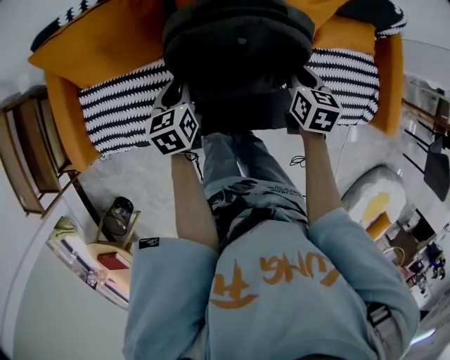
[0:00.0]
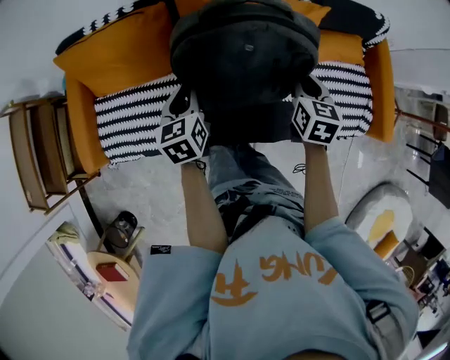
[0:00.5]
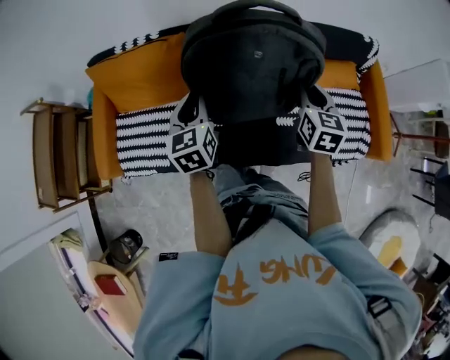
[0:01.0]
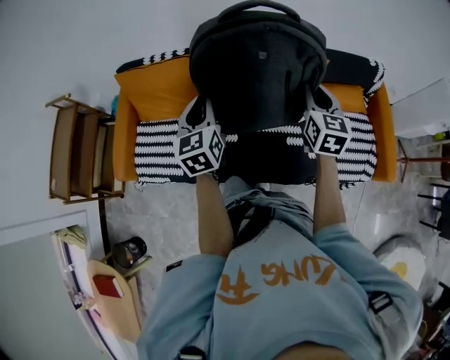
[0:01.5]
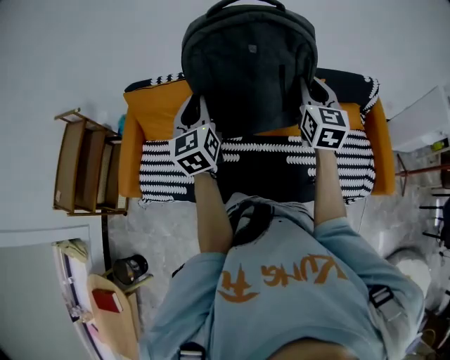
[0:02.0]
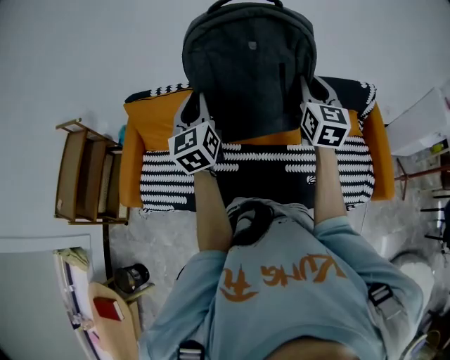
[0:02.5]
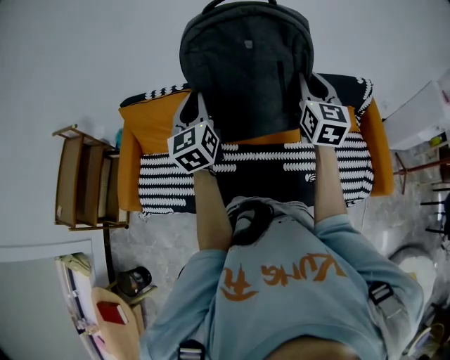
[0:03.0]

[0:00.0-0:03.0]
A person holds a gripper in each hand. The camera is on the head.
0.0 to 1.5 s: Both grippers travel together upward, roughly 30 cm. The left gripper rotates about 30 degrees, while the right gripper changes its angle by approximately 30 degrees.
1.5 to 3.0 s: The left gripper heads upward and forward, covering about 10 cm. The right gripper shifts some 10 cm upward.

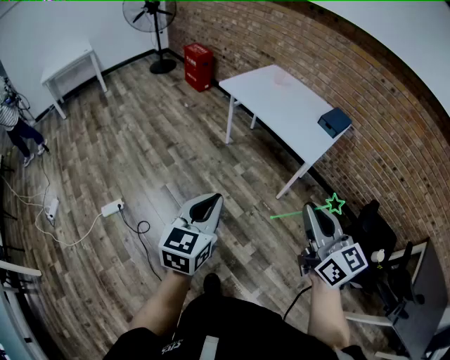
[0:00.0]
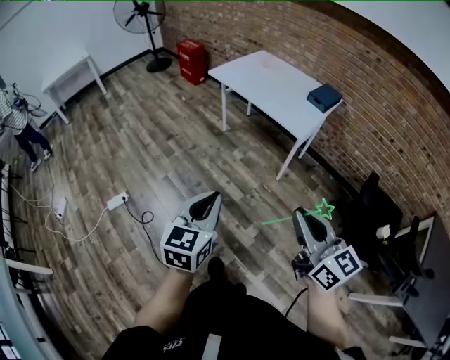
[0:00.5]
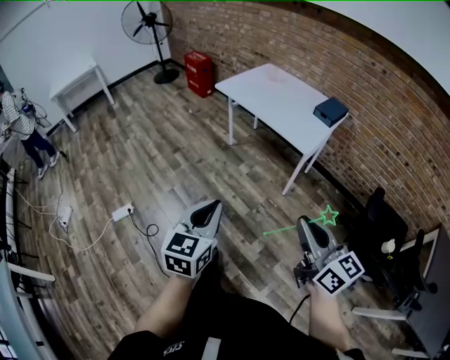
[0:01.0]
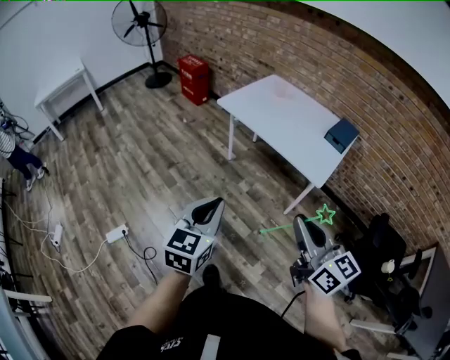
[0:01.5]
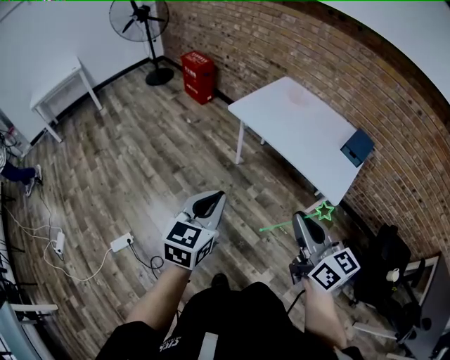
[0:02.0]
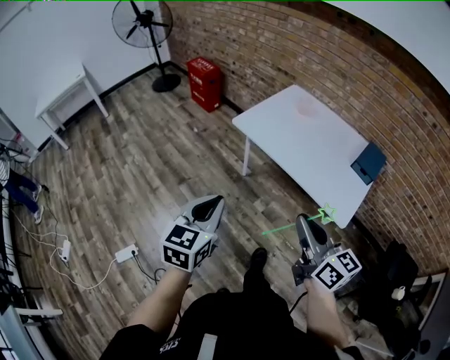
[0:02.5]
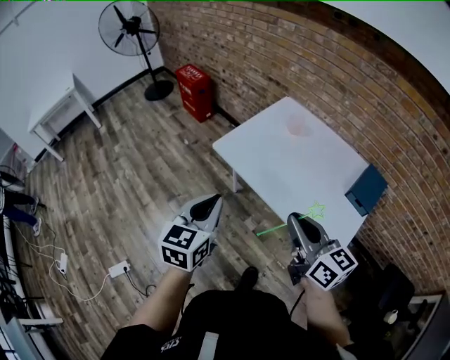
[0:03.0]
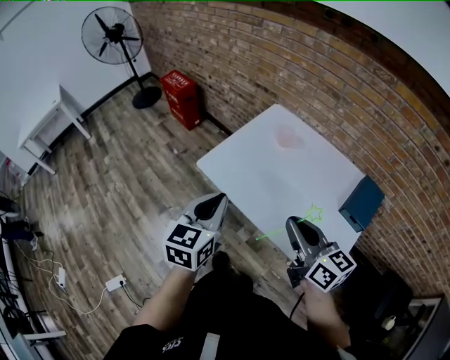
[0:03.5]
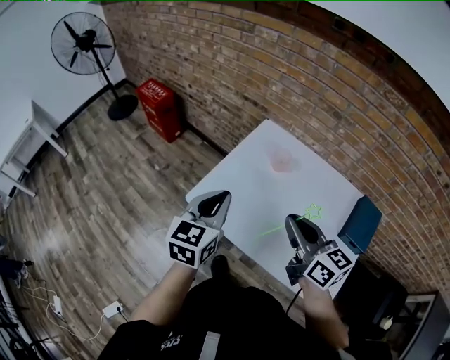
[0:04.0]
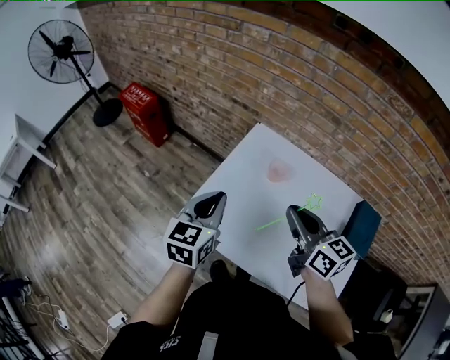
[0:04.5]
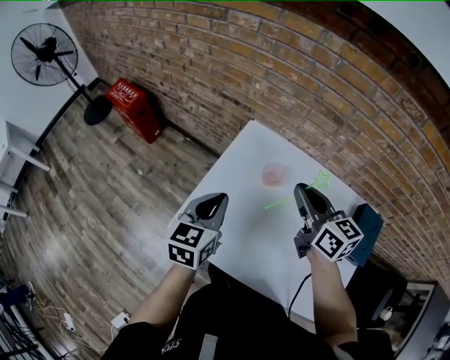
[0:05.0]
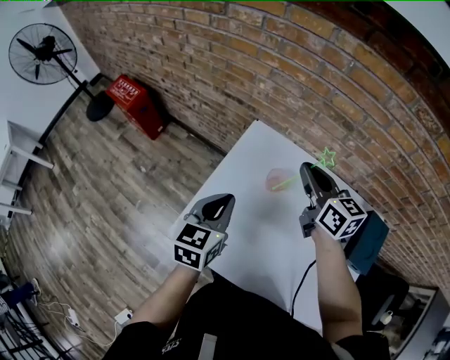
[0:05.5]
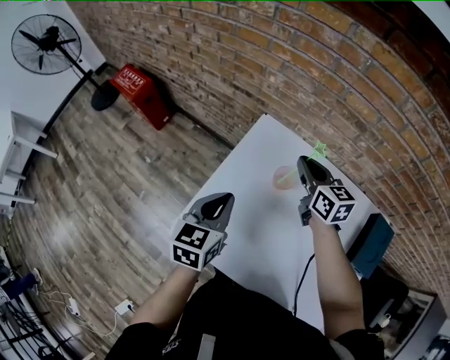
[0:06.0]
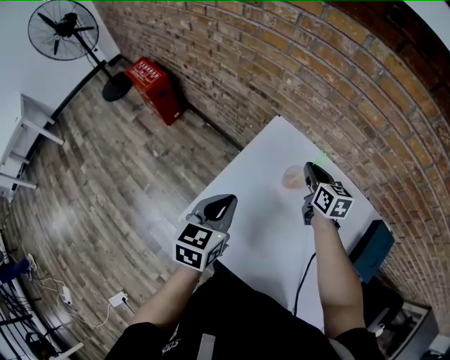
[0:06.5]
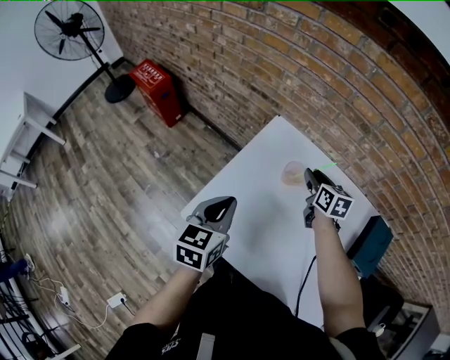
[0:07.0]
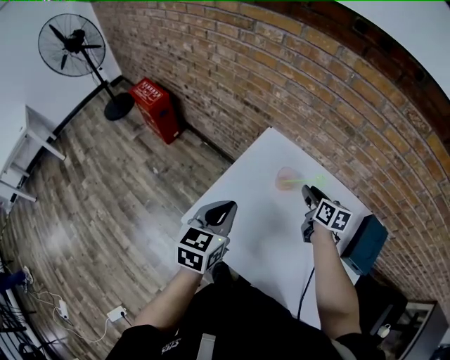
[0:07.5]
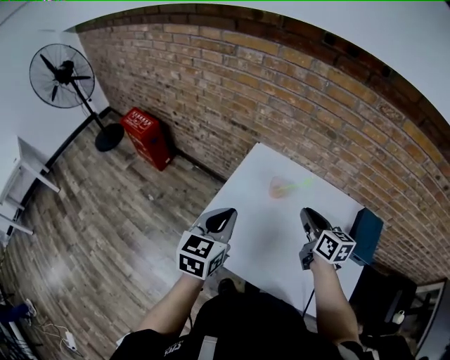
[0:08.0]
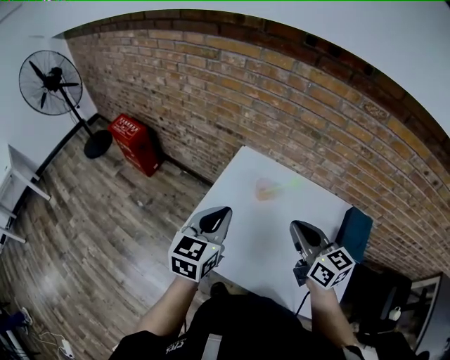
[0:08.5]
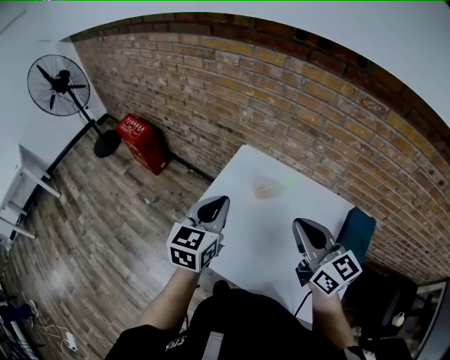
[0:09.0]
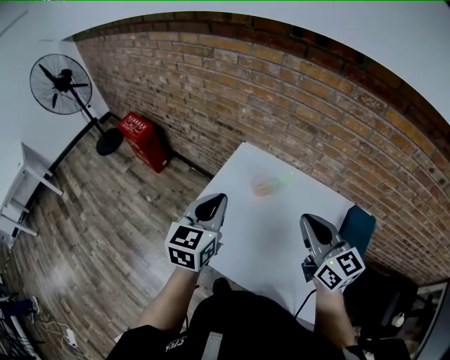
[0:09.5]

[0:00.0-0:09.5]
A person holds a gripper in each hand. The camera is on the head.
0.0 to 2.0 s: The right gripper travels forward and to the left by some 25 cm; the left gripper heads forward, covering about 25 cm.
2.0 to 4.0 s: Both grippers are carried forward, some 60 cm.
4.0 to 5.5 s: The left gripper heads forward and downward, covering some 20 cm. The right gripper travels forward by roughly 30 cm.
5.5 to 7.5 s: The left gripper heads backward, covering about 10 cm; the right gripper is displaced downward by about 10 cm, rotates some 20 degrees, and opens.
7.5 to 9.5 s: The left gripper travels upward and to the right by some 10 cm; the right gripper moves upward and backward, approximately 30 cm, rotates about 30 degrees, and closes up.

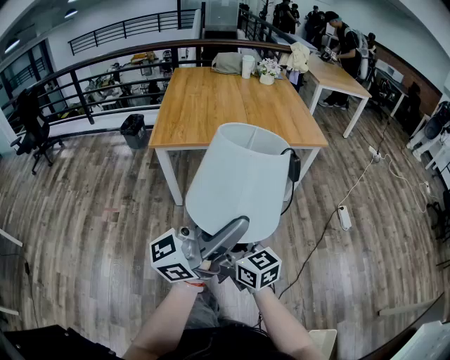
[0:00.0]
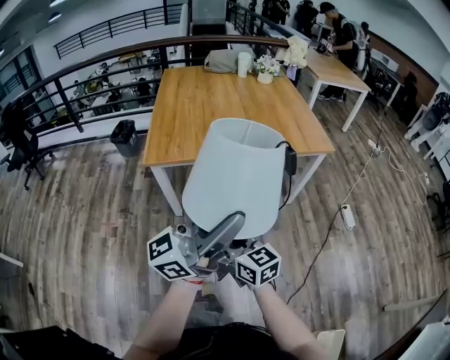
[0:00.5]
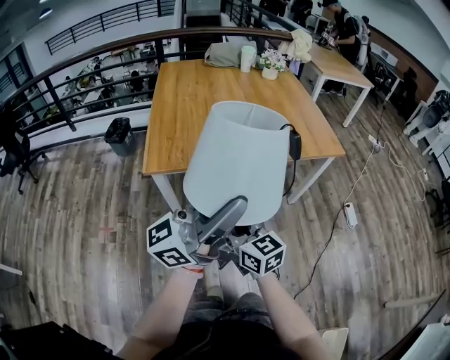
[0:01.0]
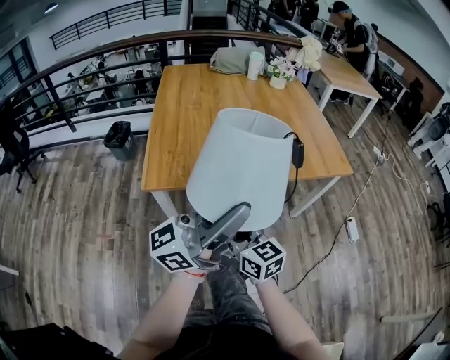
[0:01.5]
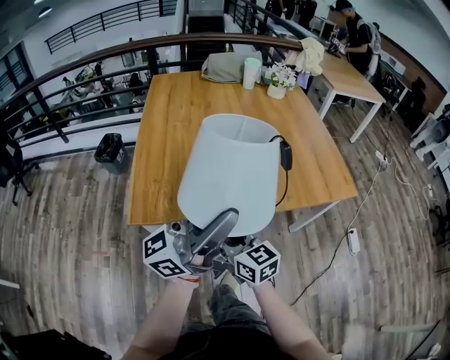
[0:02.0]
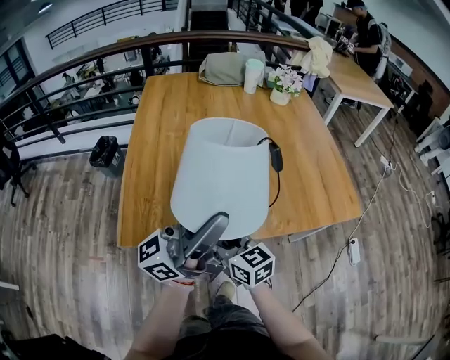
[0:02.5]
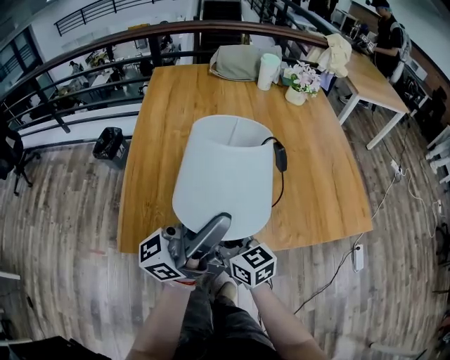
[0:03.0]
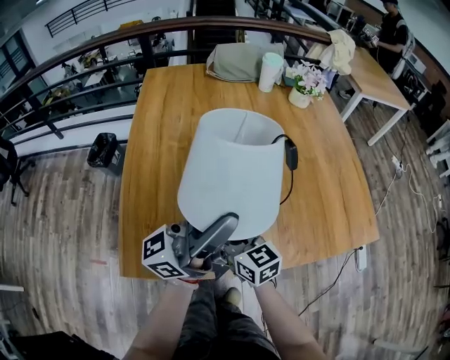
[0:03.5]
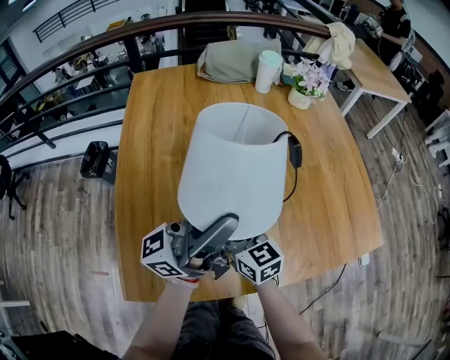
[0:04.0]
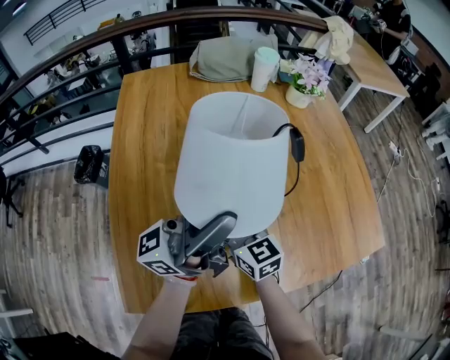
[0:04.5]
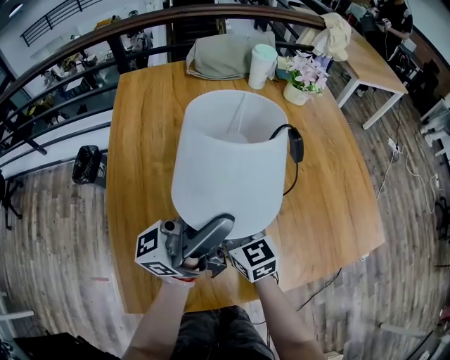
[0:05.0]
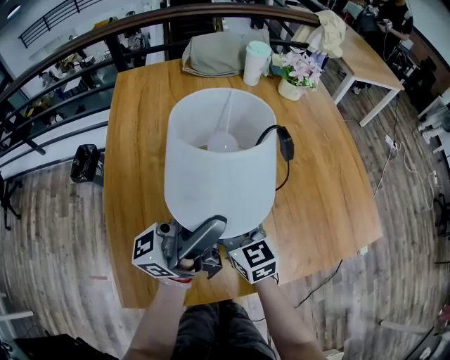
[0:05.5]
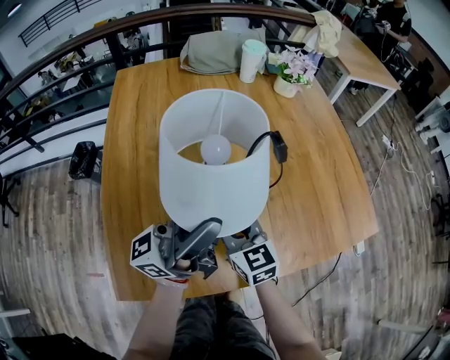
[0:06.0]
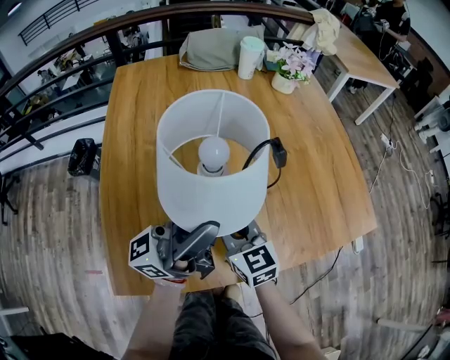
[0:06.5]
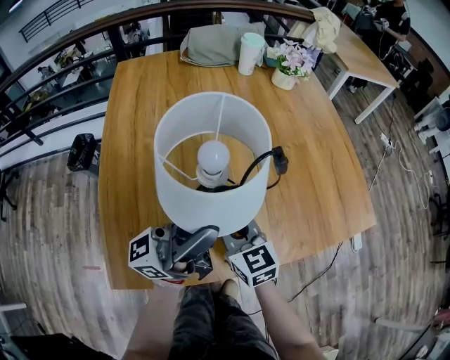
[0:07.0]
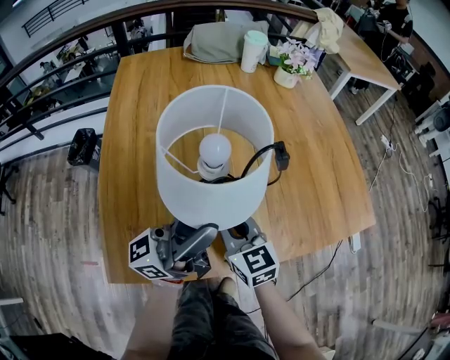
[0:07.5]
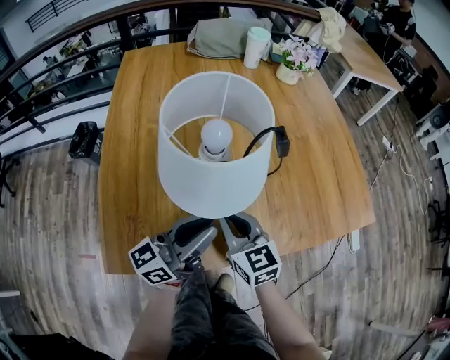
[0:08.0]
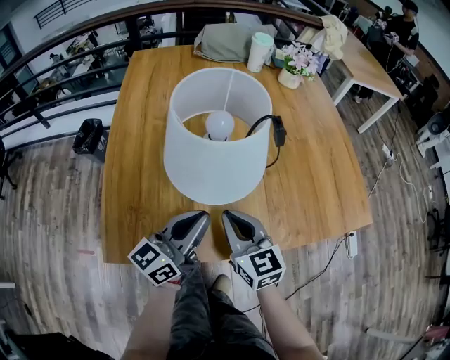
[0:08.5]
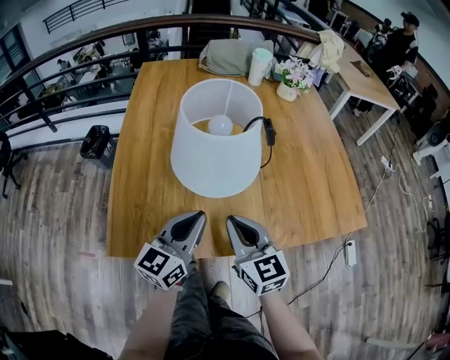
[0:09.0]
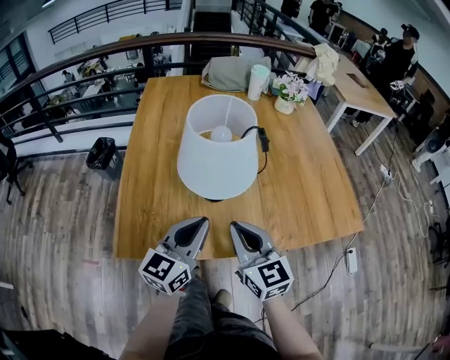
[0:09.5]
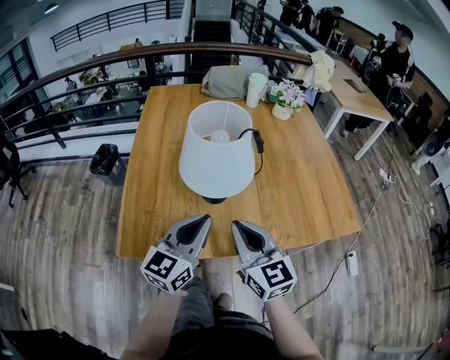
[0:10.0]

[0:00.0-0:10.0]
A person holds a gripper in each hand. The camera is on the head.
0.0 to 2.0 s: The two grippers travel together, forward, roughly 40 cm.
2.0 to 4.0 s: Both grippers move forward, about 30 cm.
4.0 to 6.0 s: The right gripper closes its fingers.
6.0 to 8.0 s: The left gripper goes approximately 15 cm downward and backward, and rotates approximately 30 degrees; the right gripper heads backward, covering about 5 cm.
8.0 to 10.0 s: The right gripper shifts some 15 cm upward and backward; the left gripper travels backward and upward by about 10 cm, and changes its angle by approximately 40 degrees.

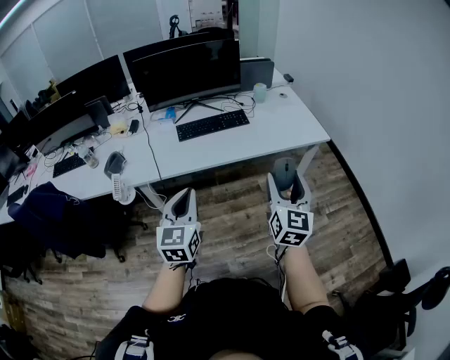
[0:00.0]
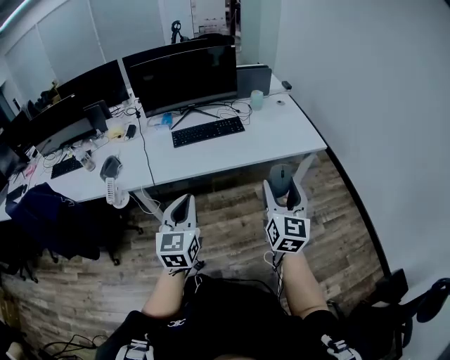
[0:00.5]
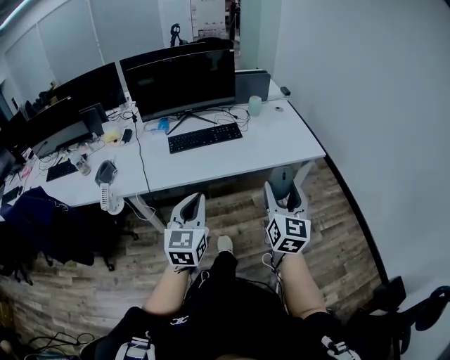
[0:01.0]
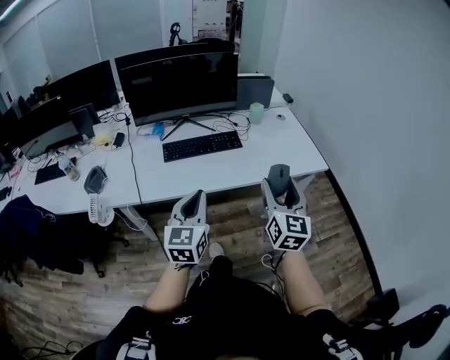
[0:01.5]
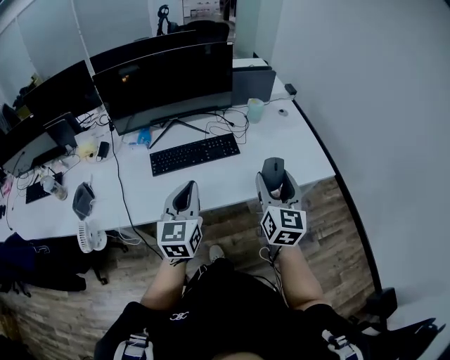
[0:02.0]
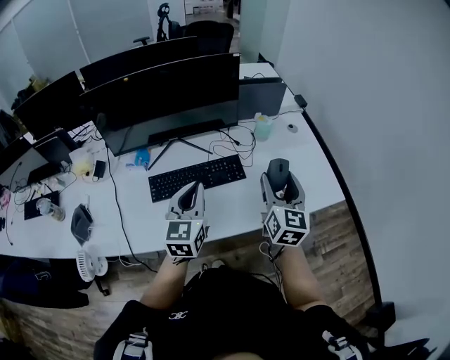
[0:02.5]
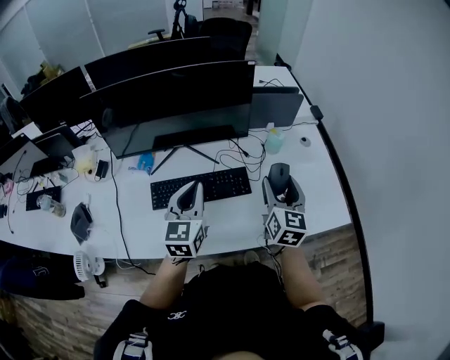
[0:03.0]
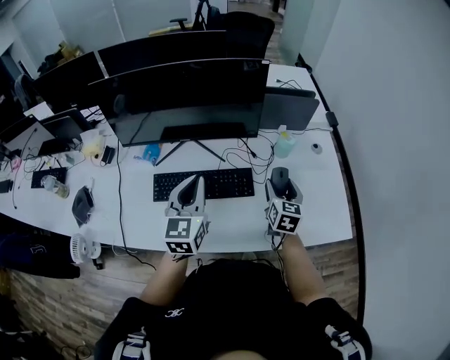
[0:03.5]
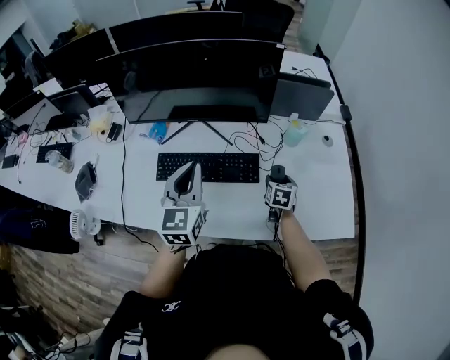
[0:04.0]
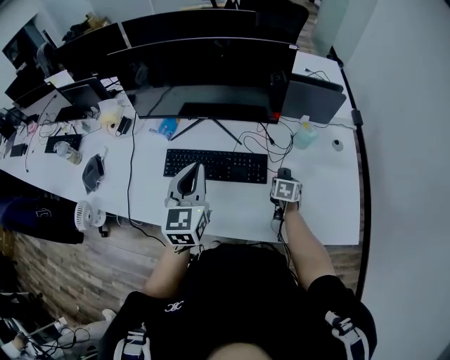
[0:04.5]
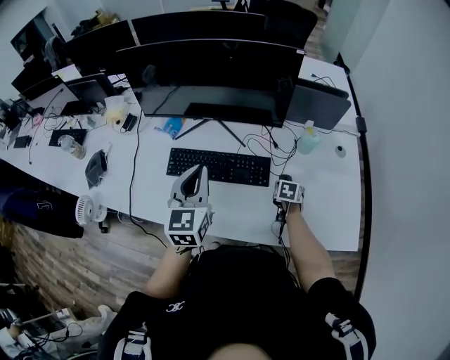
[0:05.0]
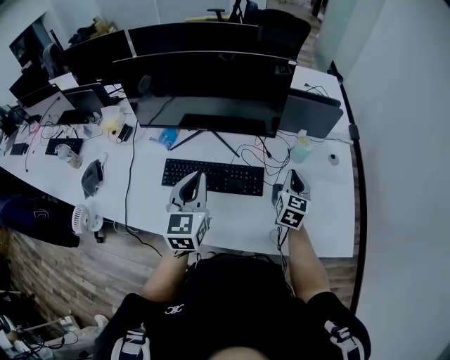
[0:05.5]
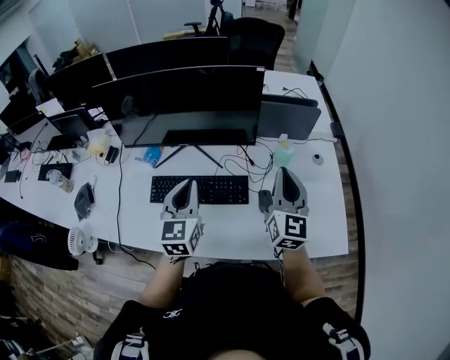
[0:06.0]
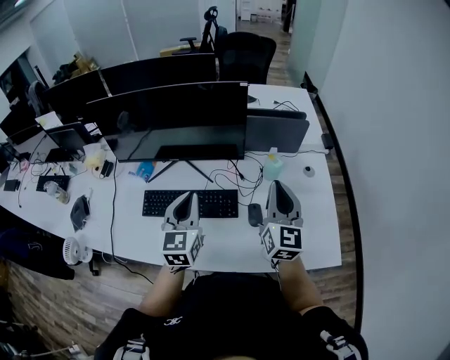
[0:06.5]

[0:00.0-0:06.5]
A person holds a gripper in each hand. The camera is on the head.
0.0 to 2.0 s: The grippers both shift forward by approximately 35 cm.
2.0 to 4.5 s: The right gripper moves forward and downward, some 50 cm, and angles its fingers downward, by approximately 50 degrees, while the left gripper goes about 25 cm forward, and swivels roughly 20 degrees.
4.5 to 6.5 s: The left gripper goes some 10 cm to the right. Meanwhile the right gripper heads upward, covering roughly 35 cm, tilts its fingers about 60 degrees upward, and closes.
